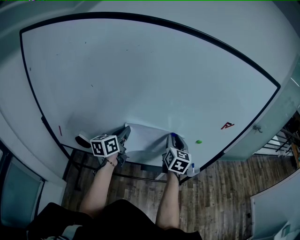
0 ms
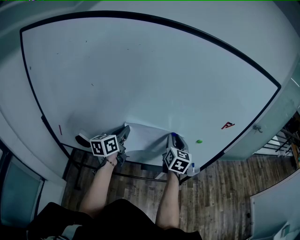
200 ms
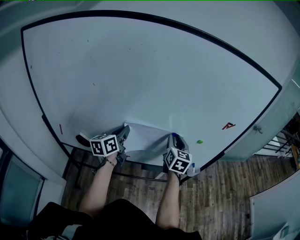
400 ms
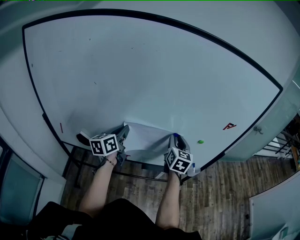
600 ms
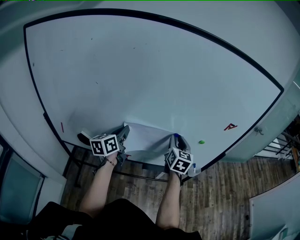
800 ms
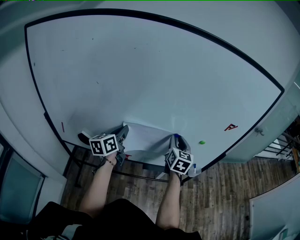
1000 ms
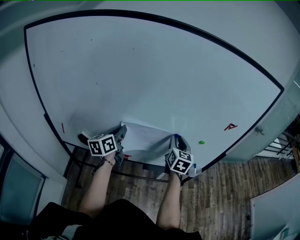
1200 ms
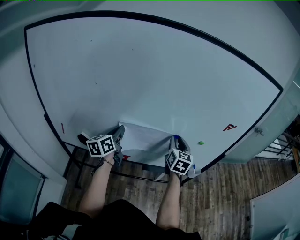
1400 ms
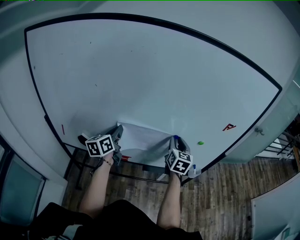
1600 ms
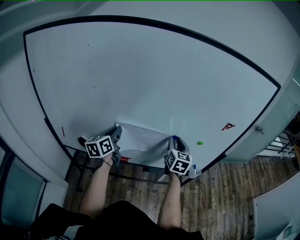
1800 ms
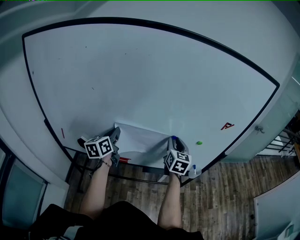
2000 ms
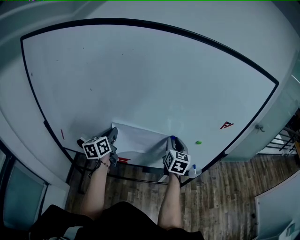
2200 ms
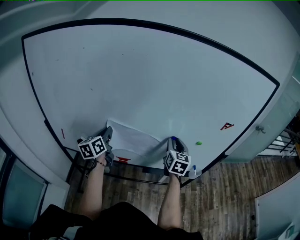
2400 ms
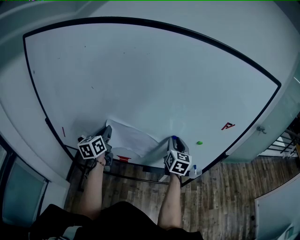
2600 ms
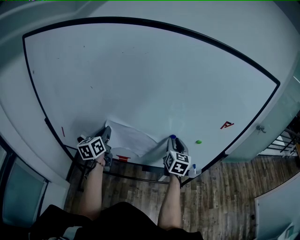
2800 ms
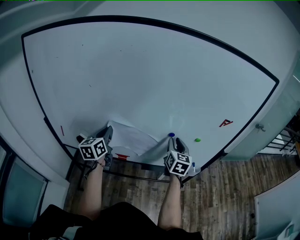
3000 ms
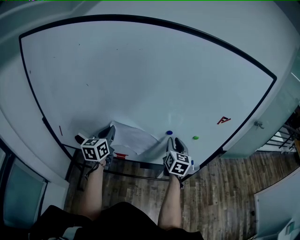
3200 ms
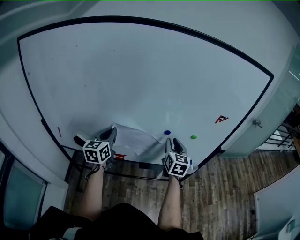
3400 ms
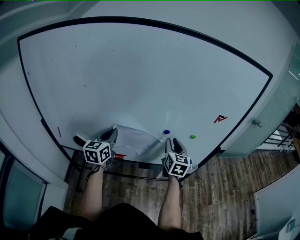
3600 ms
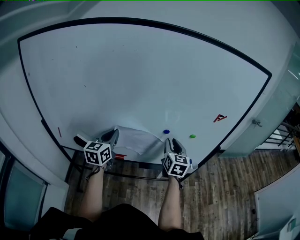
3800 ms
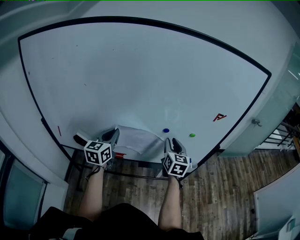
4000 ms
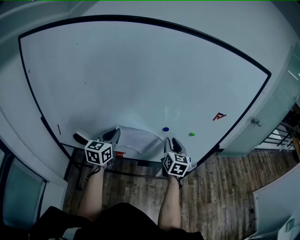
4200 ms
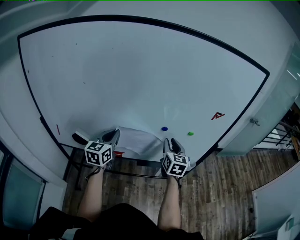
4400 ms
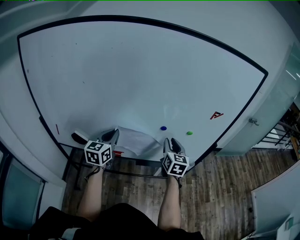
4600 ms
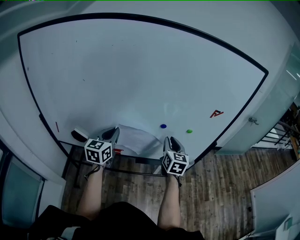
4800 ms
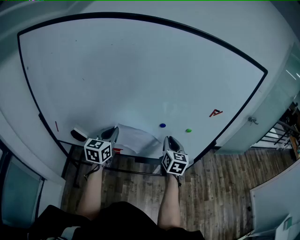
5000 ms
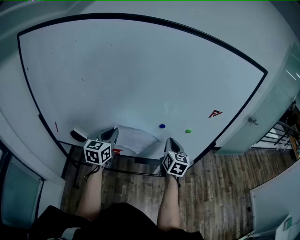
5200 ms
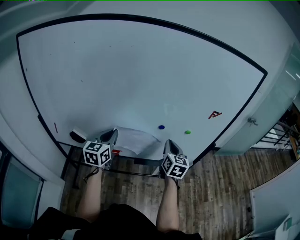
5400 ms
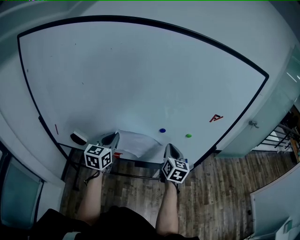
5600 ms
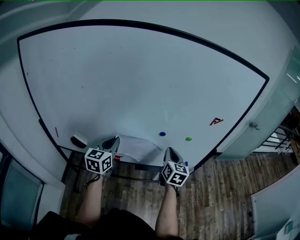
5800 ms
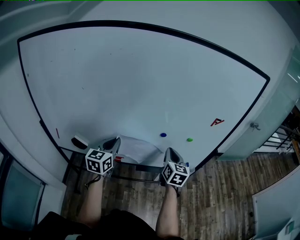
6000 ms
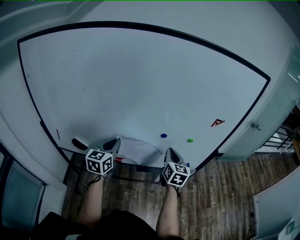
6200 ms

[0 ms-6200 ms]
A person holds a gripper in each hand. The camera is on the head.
0 ms to 1600 ms: The left gripper shifts some 5 cm to the left.
1600 ms to 3200 ms: The grippers stay close to where they were, moving slightly.
3200 ms to 4600 ms: The left gripper is displaced to the right by approximately 5 cm.
4600 ms to 6200 ms: The right gripper closes up.

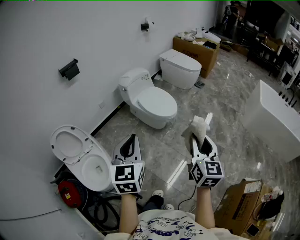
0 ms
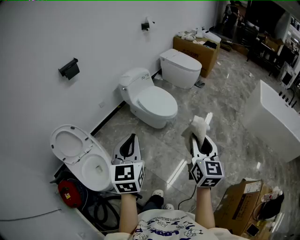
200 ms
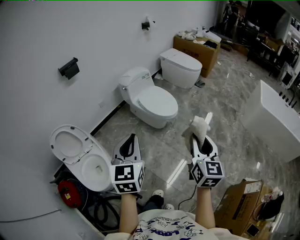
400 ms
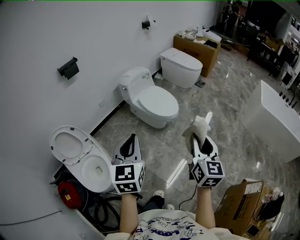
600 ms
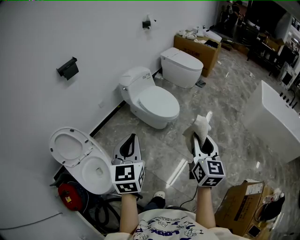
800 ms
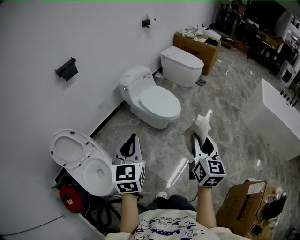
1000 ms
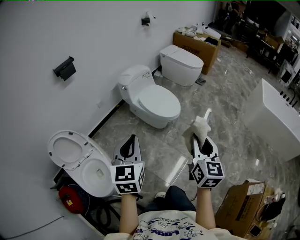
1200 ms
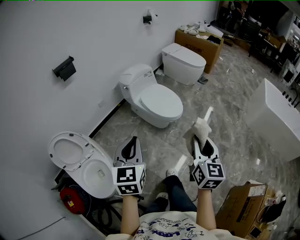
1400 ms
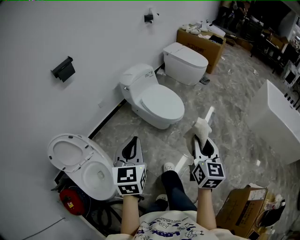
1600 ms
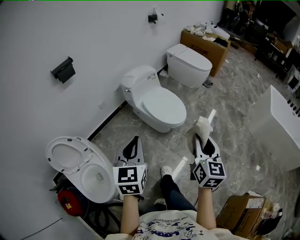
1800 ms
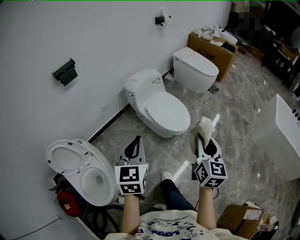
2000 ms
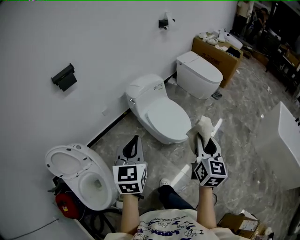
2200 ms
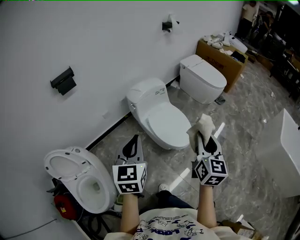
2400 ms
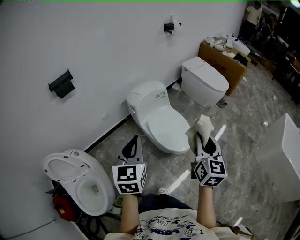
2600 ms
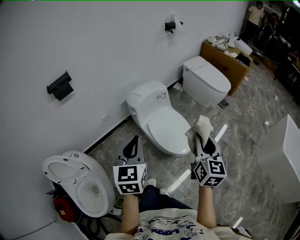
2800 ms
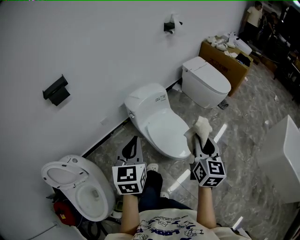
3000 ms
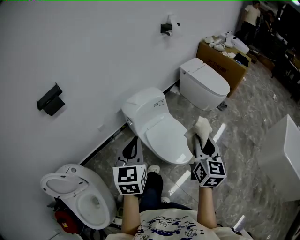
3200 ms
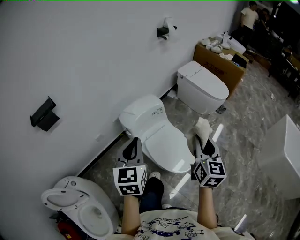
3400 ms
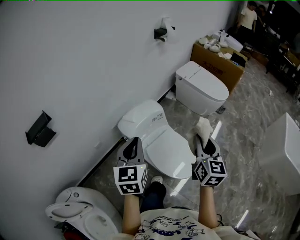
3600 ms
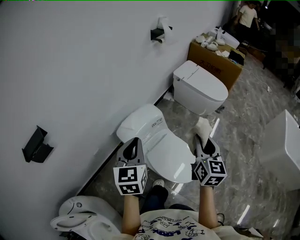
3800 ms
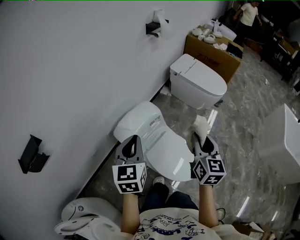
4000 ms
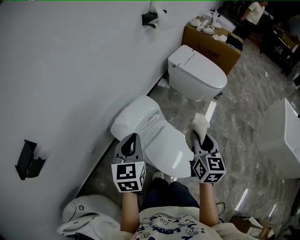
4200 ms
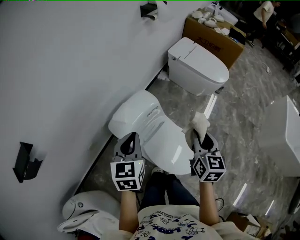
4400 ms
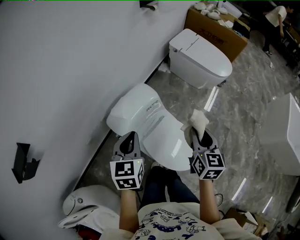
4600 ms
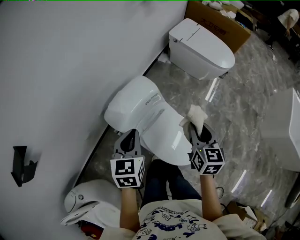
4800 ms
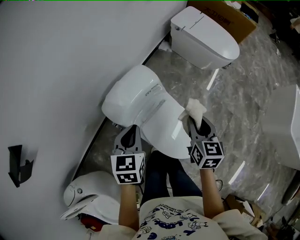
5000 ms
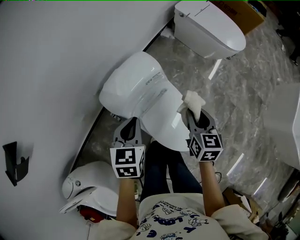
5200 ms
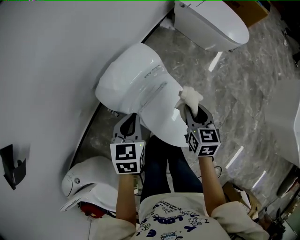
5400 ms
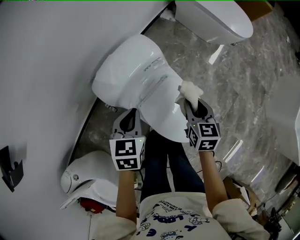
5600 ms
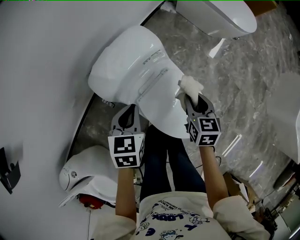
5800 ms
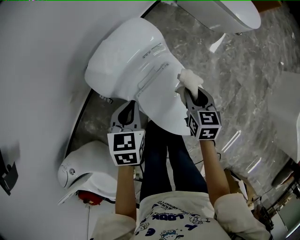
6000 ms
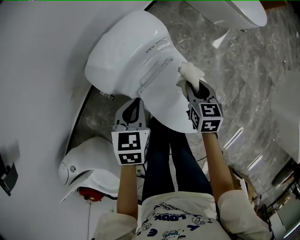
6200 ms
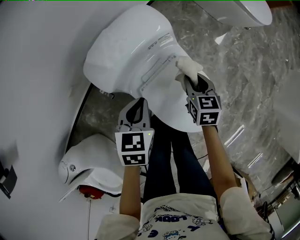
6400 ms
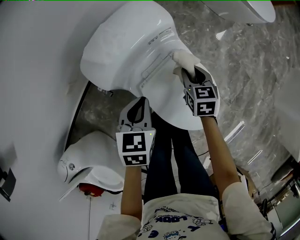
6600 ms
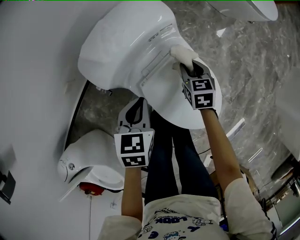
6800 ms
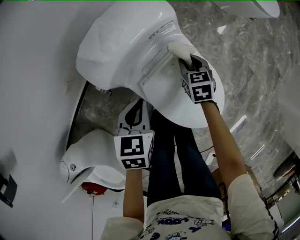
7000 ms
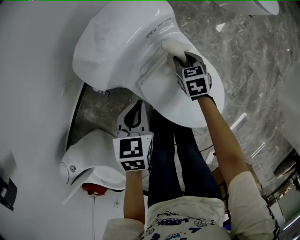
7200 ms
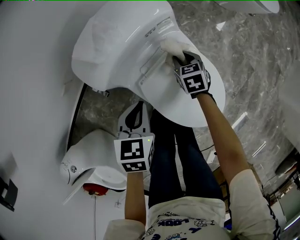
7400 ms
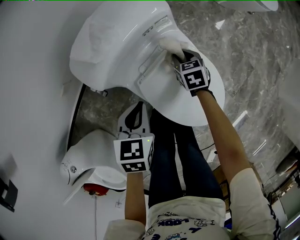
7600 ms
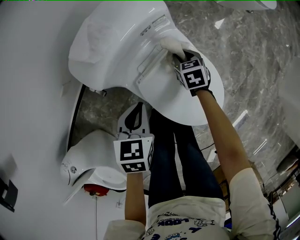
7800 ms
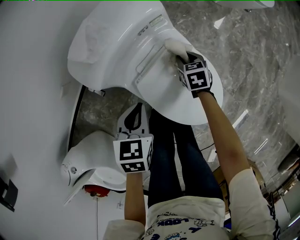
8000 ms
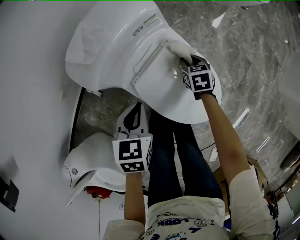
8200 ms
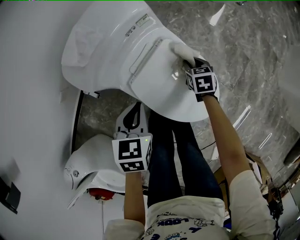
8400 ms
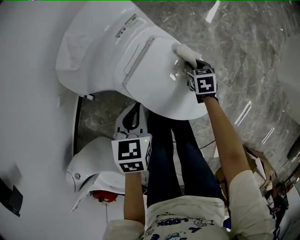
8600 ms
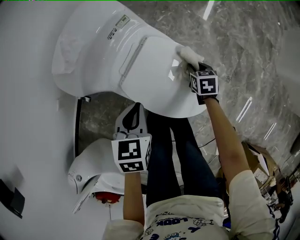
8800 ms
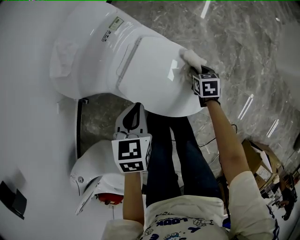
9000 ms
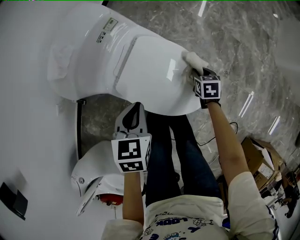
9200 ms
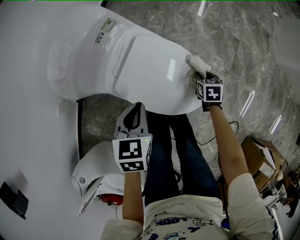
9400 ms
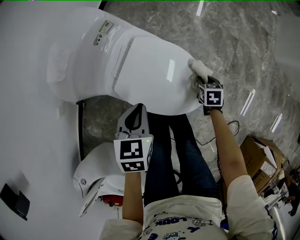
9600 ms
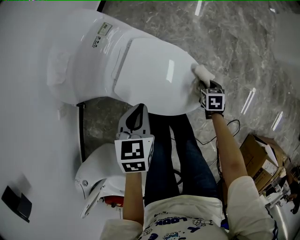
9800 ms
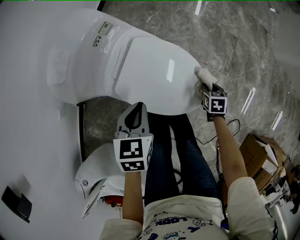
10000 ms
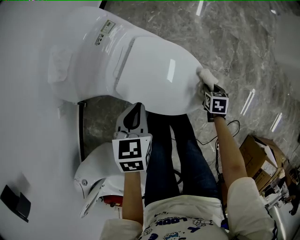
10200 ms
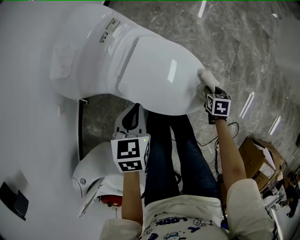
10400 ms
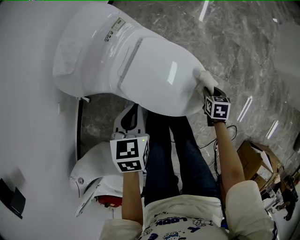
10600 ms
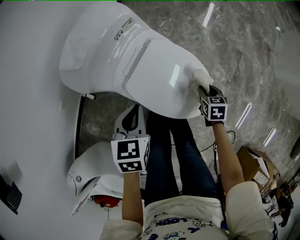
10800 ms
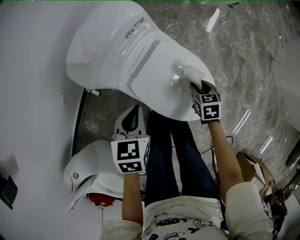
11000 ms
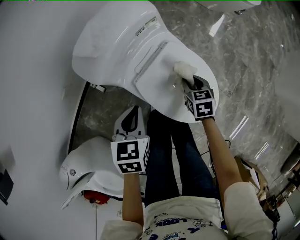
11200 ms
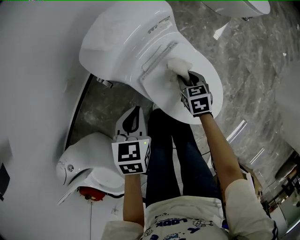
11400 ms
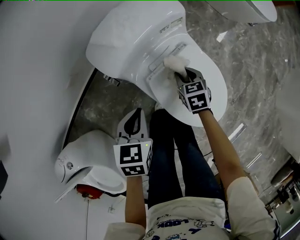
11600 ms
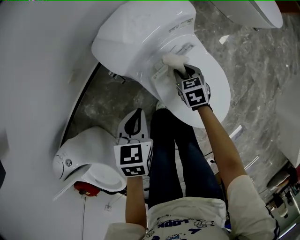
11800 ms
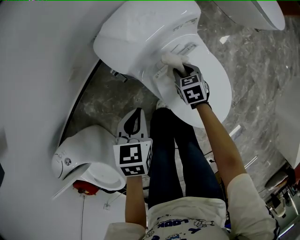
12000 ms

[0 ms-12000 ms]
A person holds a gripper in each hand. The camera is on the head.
0 ms to 1600 ms: The two grippers go about 15 cm forward and to the left.
1600 ms to 3000 ms: The two grippers go some 40 cm forward.
3000 ms to 4400 ms: The two grippers go approximately 35 cm forward.
4400 ms to 6000 ms: The grippers both shift downward by roughly 30 cm. The left gripper turns by some 20 degrees, while the right gripper turns by approximately 30 degrees.
6000 ms to 7600 ms: The right gripper moves downward, some 20 cm, and rotates about 20 degrees, while the left gripper shifts roughly 10 cm downward.
7600 ms to 9000 ms: The left gripper is displaced to the right by about 10 cm, while the right gripper moves to the right and backward, approximately 25 cm, and swivels about 30 degrees.
9000 ms to 10400 ms: The right gripper shifts by about 15 cm.
10400 ms to 12000 ms: The left gripper shifts by some 20 cm, and turns by approximately 20 degrees, while the right gripper changes place by approximately 40 cm, and twists about 40 degrees counterclockwise, seen from behind.

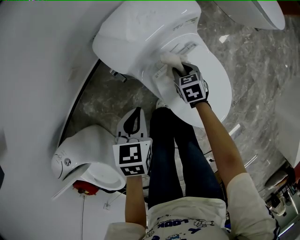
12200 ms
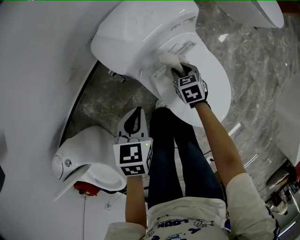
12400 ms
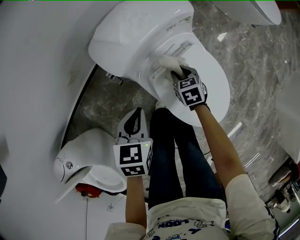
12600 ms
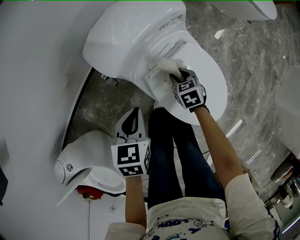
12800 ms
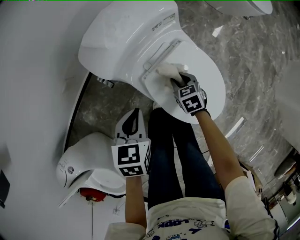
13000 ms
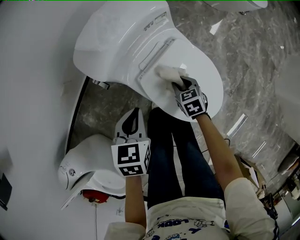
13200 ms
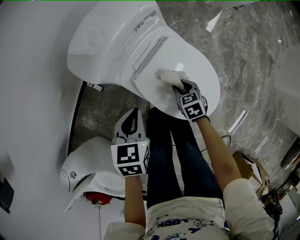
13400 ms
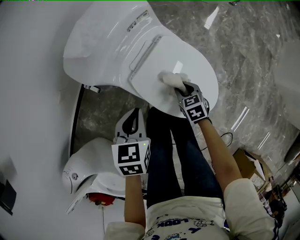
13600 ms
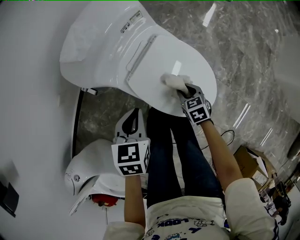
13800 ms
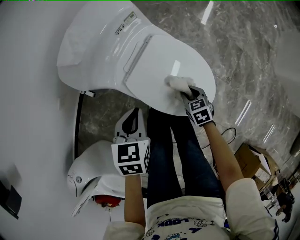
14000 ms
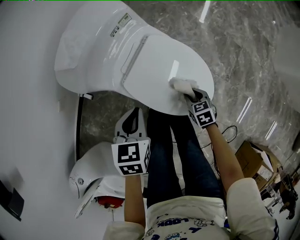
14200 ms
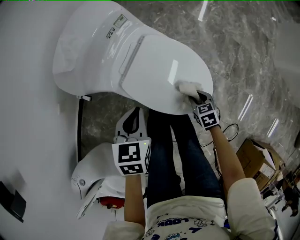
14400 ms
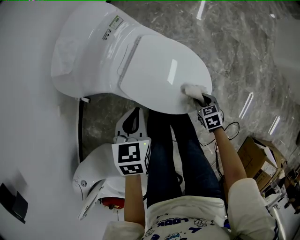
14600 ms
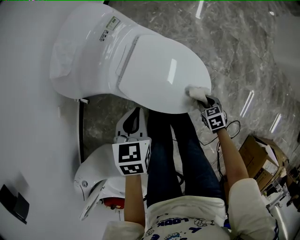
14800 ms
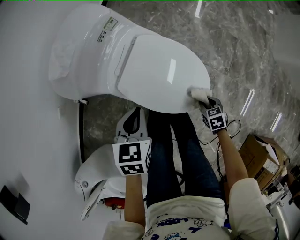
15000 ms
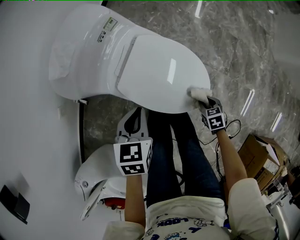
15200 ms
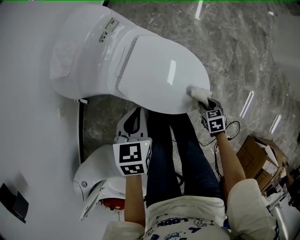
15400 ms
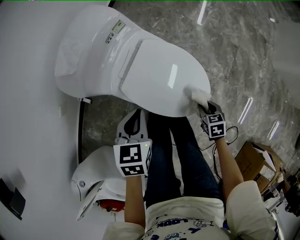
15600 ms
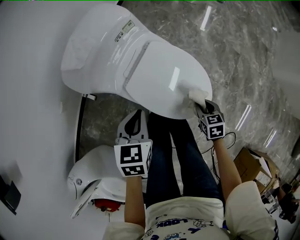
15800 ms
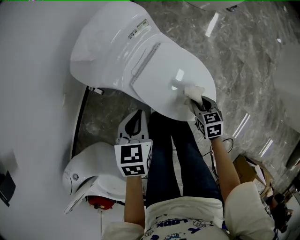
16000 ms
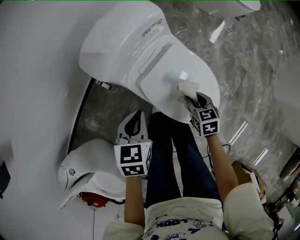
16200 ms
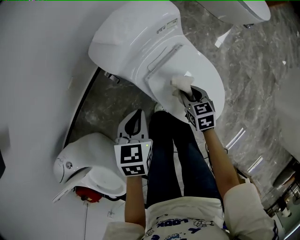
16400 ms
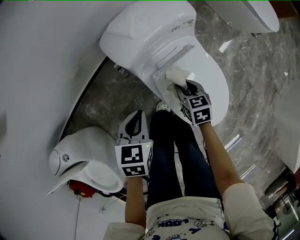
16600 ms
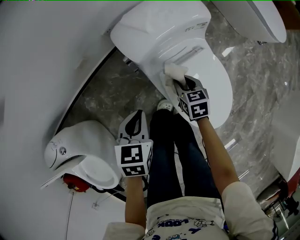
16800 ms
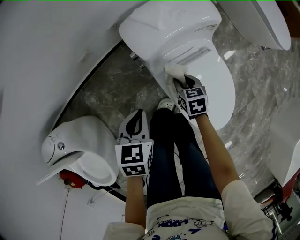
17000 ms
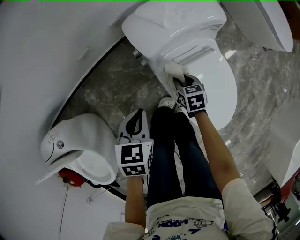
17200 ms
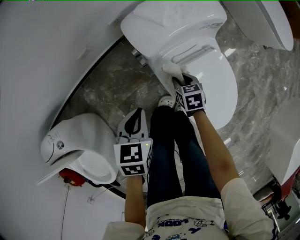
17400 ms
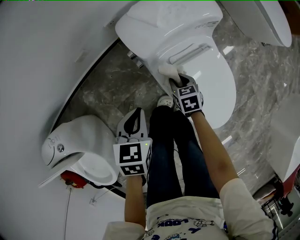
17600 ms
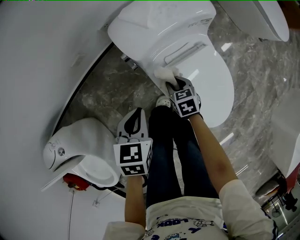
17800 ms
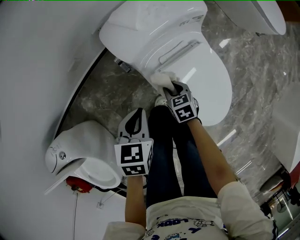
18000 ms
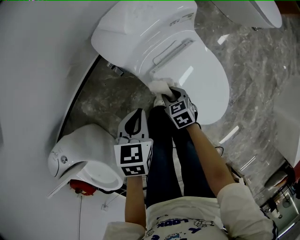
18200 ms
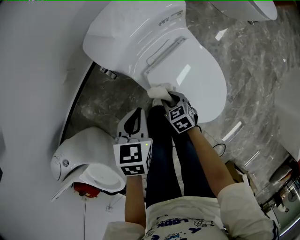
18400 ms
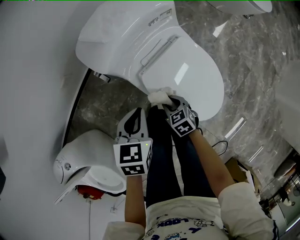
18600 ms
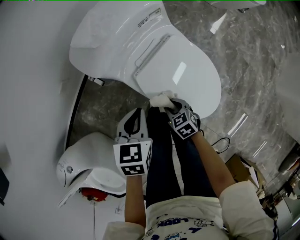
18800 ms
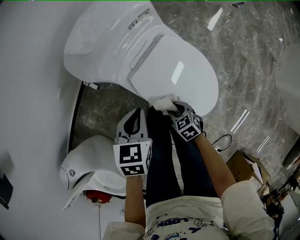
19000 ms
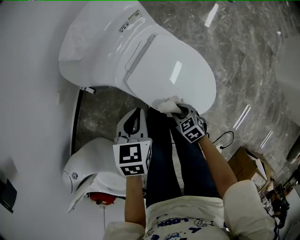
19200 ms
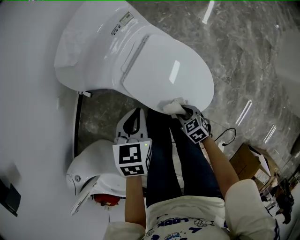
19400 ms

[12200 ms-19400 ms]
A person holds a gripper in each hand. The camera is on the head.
12200 ms to 13600 ms: The left gripper moves to the right, about 10 cm. The right gripper moves backward and to the right, roughly 20 cm.
13600 ms to 15000 ms: The right gripper ends up some 25 cm from where it was. The left gripper moves some 10 cm.
15000 ms to 16600 ms: The left gripper moves approximately 15 cm, and rotates about 30 degrees; the right gripper ends up about 35 cm from where it was, and rotates some 30 degrees.
16600 ms to 18000 ms: The right gripper heads downward and to the left, covering roughly 10 cm.
18000 ms to 19400 ms: The right gripper goes some 25 cm backward and to the right; the left gripper travels to the right by approximately 15 cm, and swivels about 20 degrees.
